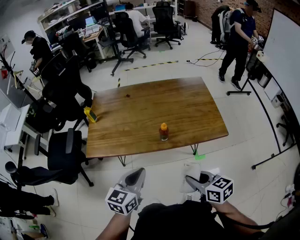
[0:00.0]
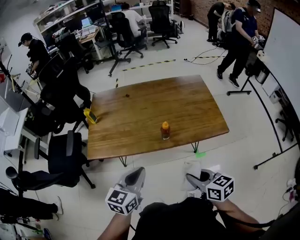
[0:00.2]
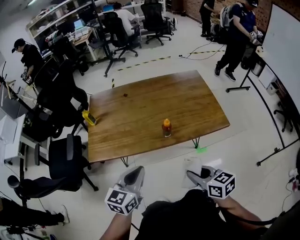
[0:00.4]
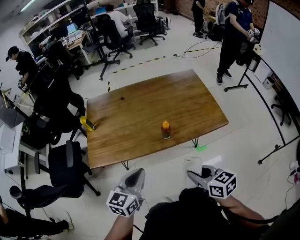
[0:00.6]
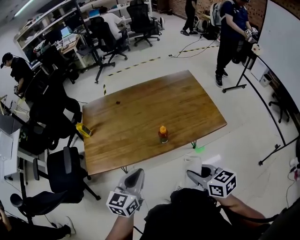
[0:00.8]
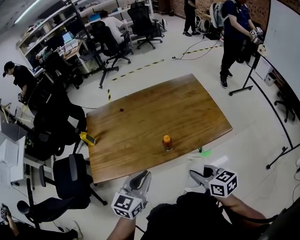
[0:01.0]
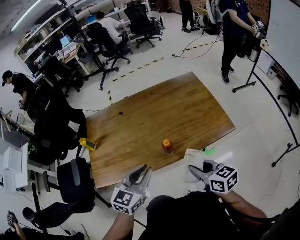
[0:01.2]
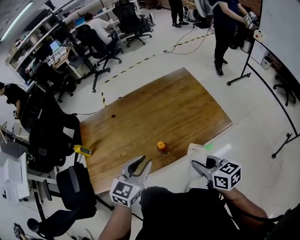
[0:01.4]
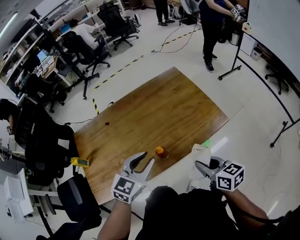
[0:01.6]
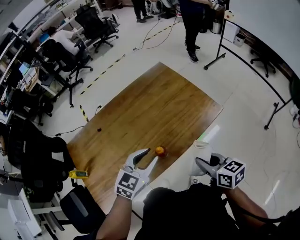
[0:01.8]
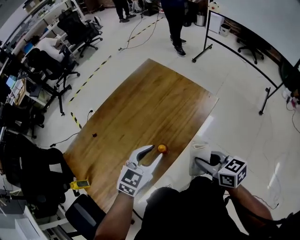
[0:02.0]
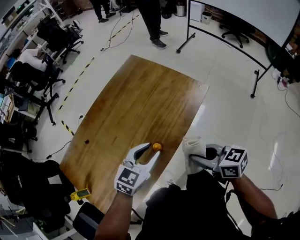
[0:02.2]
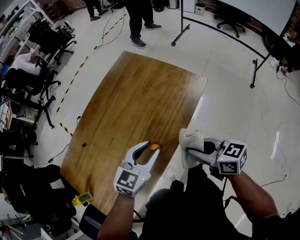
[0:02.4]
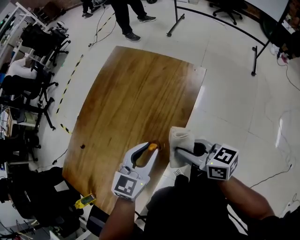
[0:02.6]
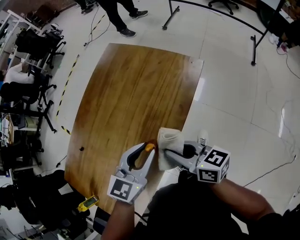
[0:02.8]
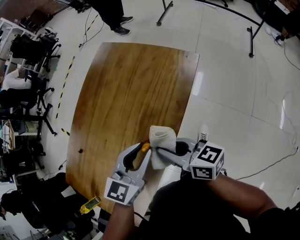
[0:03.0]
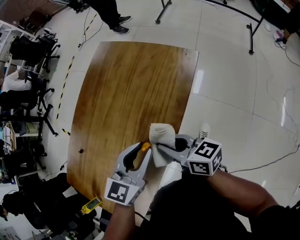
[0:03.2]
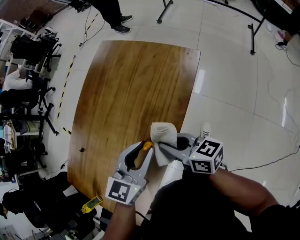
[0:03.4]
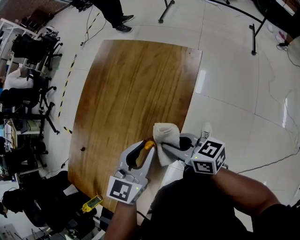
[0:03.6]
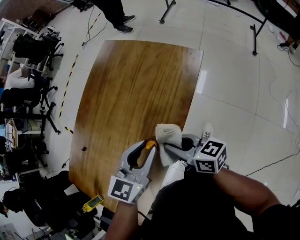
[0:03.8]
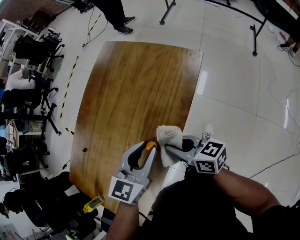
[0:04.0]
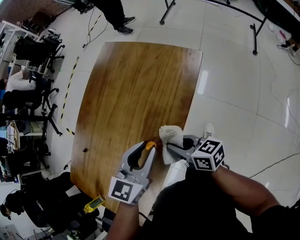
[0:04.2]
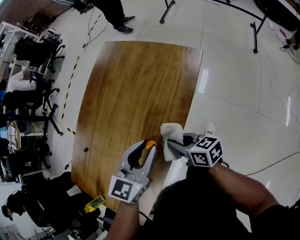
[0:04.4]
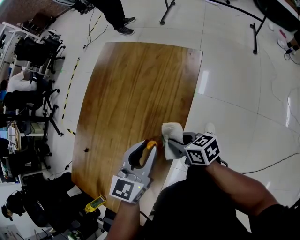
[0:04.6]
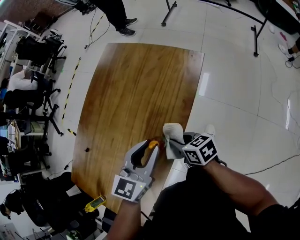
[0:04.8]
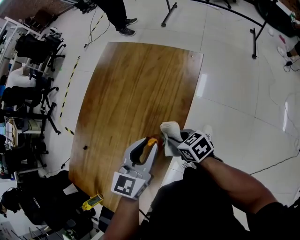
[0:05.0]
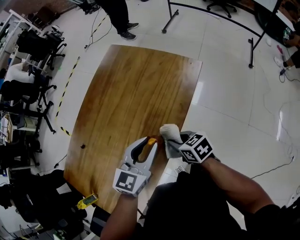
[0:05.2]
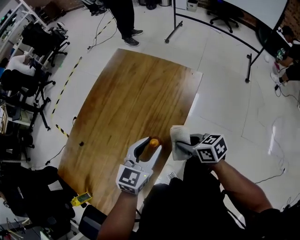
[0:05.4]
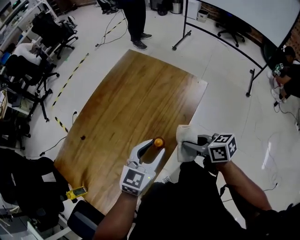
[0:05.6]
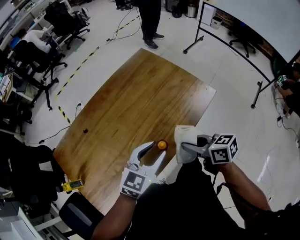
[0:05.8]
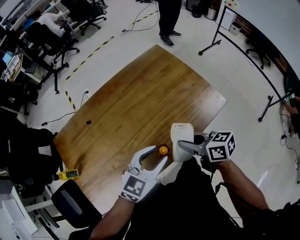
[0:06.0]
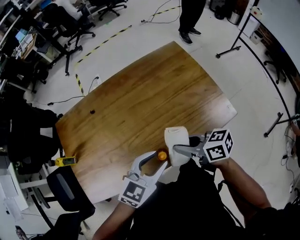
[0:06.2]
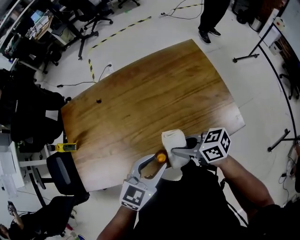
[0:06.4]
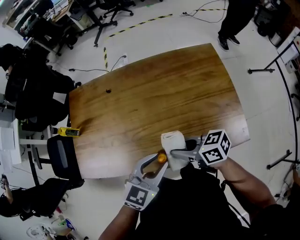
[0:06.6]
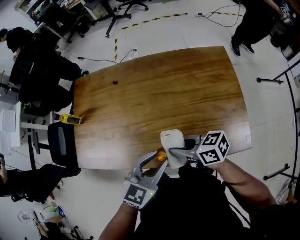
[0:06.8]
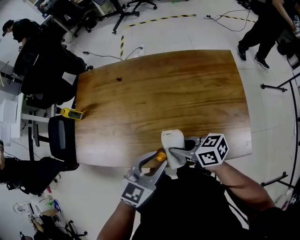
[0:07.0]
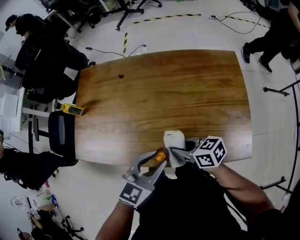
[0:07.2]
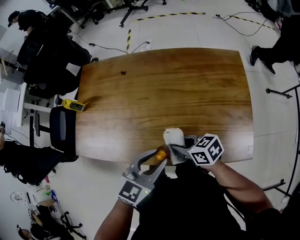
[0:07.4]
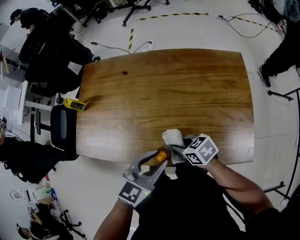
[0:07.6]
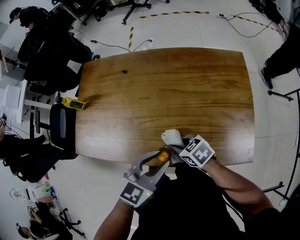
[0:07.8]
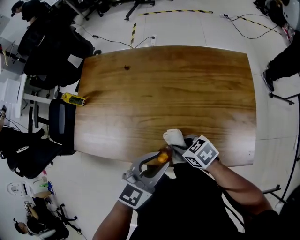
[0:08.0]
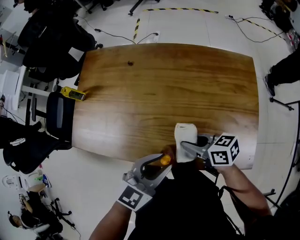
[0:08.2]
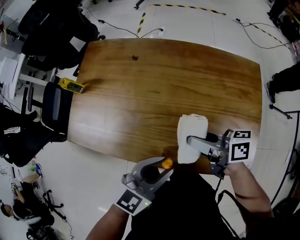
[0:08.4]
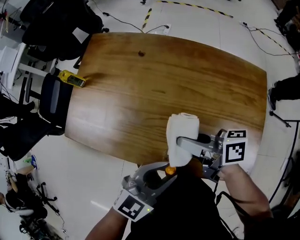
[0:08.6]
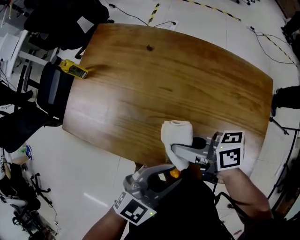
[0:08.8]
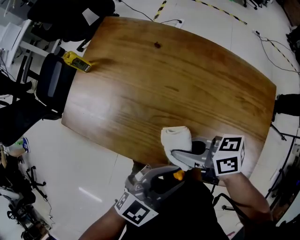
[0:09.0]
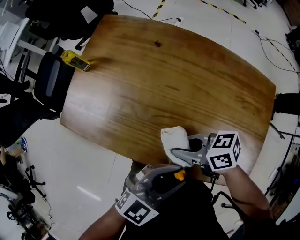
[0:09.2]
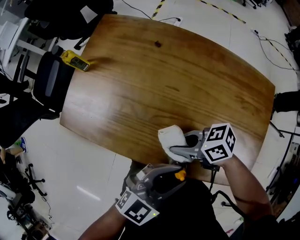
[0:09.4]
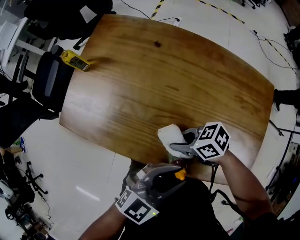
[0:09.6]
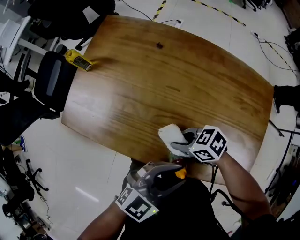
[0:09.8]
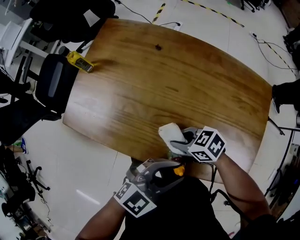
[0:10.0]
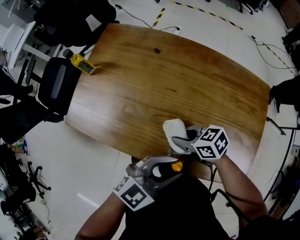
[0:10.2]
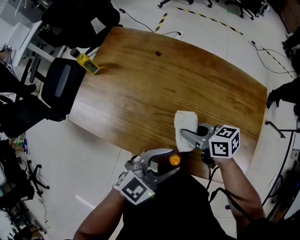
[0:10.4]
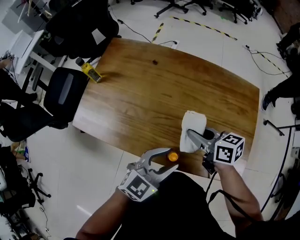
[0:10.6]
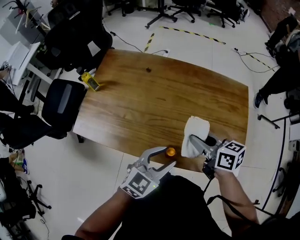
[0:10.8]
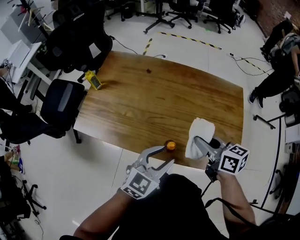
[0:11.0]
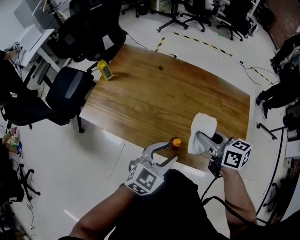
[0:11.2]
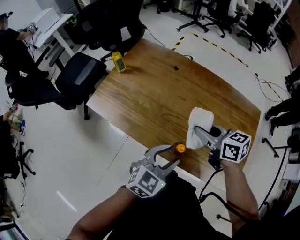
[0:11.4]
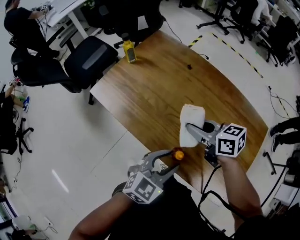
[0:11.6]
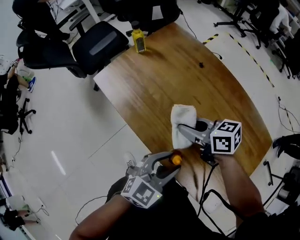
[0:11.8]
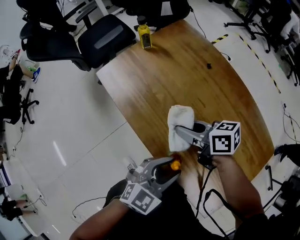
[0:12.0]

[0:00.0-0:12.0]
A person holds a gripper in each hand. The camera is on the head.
0.0 to 1.6 s: The grippers both shift forward by roughly 15 cm. The right gripper turns by about 20 degrees. Meanwhile the left gripper changes its angle by some 40 degrees, and opens.
1.6 to 3.0 s: The left gripper shifts roughly 5 cm downward, and swivels about 30 degrees; the right gripper shifts by about 15 cm, and rotates some 30 degrees.
3.0 to 4.4 s: The right gripper moves downward, roughly 10 cm.
4.4 to 6.0 s: The right gripper goes some 10 cm upward, and swivels roughly 30 degrees.
6.0 to 7.6 s: The left gripper rotates some 40 degrees, while the right gripper travels downward by about 15 cm, and changes its angle by about 60 degrees.
7.6 to 9.0 s: The right gripper moves upward, about 10 cm, and turns by approximately 30 degrees.
9.0 to 10.4 s: The right gripper travels downward and back again, approximately 10 cm each way.
10.4 to 12.0 s: The left gripper rotates approximately 40 degrees. The right gripper shifts by approximately 10 cm, and swivels approximately 30 degrees.

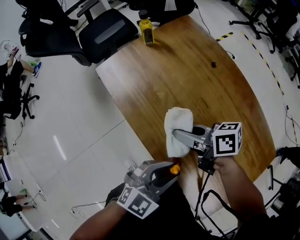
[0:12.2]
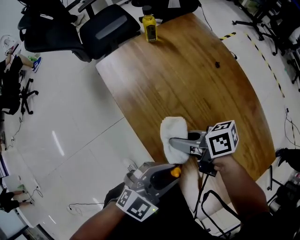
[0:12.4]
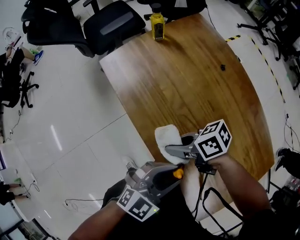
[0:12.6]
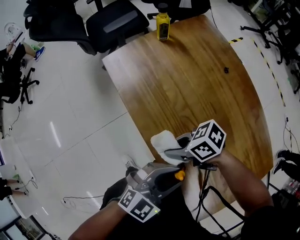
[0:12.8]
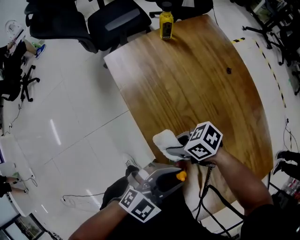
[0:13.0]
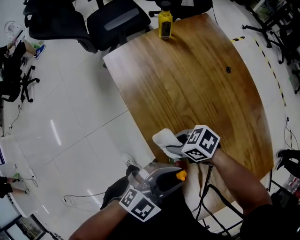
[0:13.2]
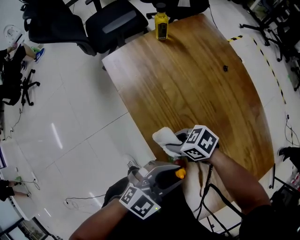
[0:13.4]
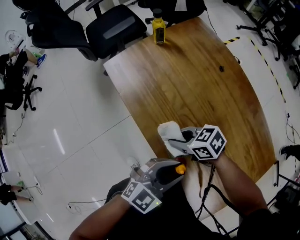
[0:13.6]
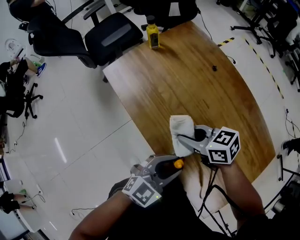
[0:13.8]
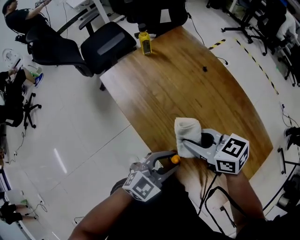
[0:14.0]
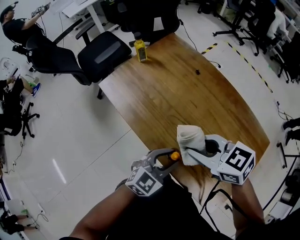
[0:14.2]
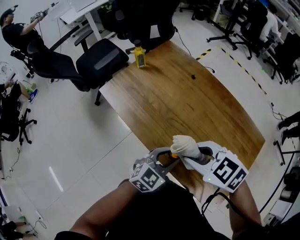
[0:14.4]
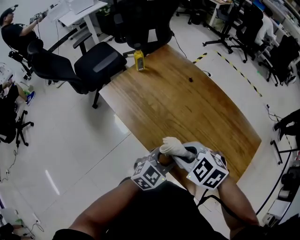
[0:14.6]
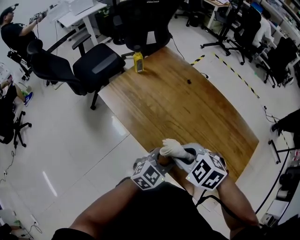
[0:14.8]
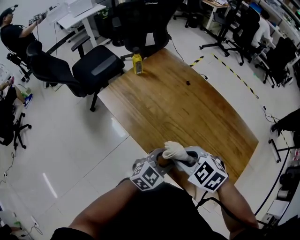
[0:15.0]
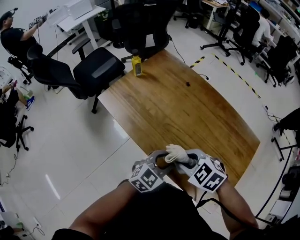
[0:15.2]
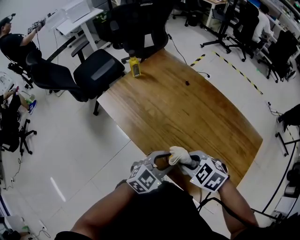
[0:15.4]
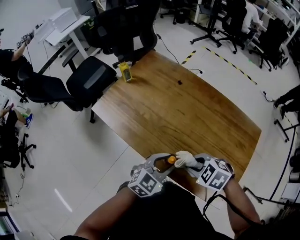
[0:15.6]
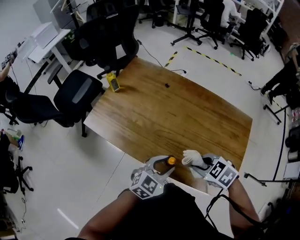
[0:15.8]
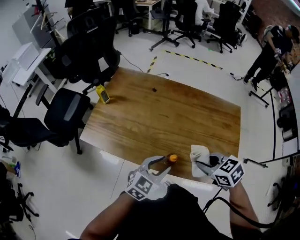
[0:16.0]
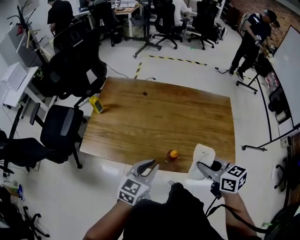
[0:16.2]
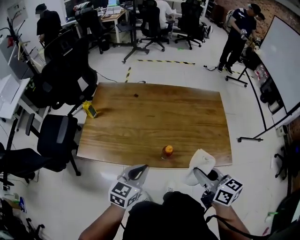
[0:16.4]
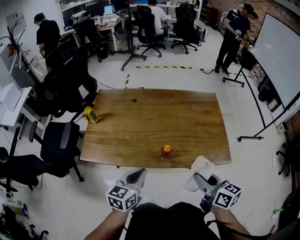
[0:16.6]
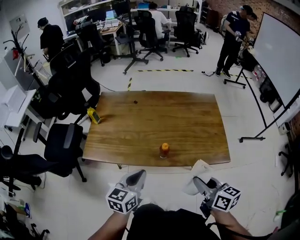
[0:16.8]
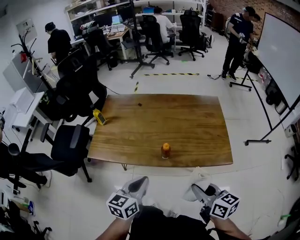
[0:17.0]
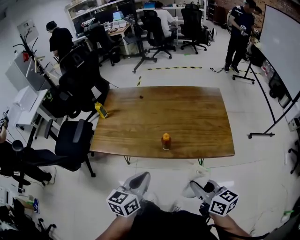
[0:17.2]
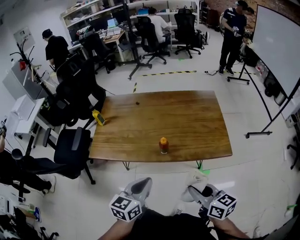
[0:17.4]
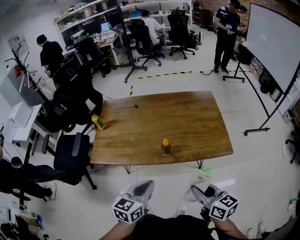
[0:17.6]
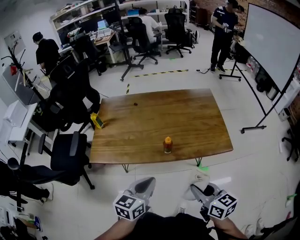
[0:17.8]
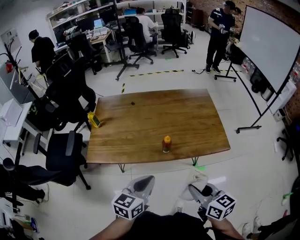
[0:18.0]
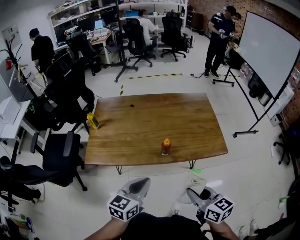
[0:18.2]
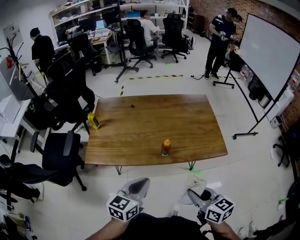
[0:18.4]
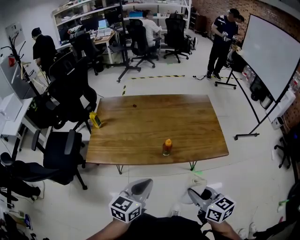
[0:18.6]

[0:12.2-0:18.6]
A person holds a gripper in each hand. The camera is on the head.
12.2 to 13.8 s: The right gripper moves approximately 10 cm downward and comes back, and changes its angle by about 30 degrees.
13.8 to 15.4 s: The right gripper goes upward and returns, roughly 10 cm each way, and swivels approximately 40 degrees.
15.4 to 17.0 s: The left gripper moves some 20 cm, swivels about 20 degrees, and closes its fingers, while the right gripper shifts by approximately 25 cm, and tilts its fingers approximately 40 degrees upward.
17.0 to 18.6 s: The right gripper is displaced to the left and backward by some 10 cm.

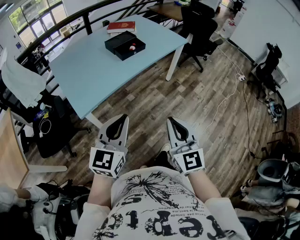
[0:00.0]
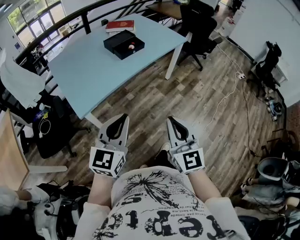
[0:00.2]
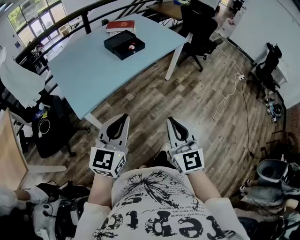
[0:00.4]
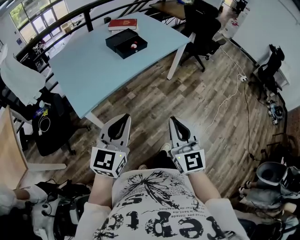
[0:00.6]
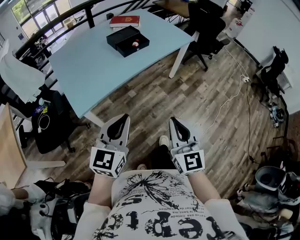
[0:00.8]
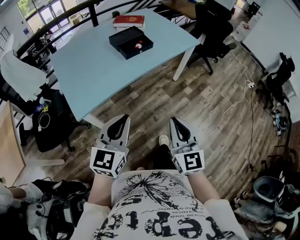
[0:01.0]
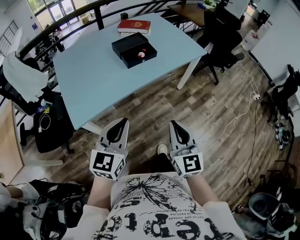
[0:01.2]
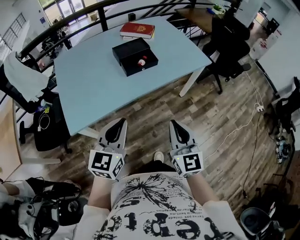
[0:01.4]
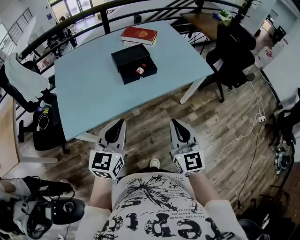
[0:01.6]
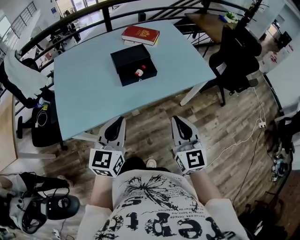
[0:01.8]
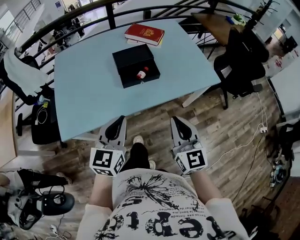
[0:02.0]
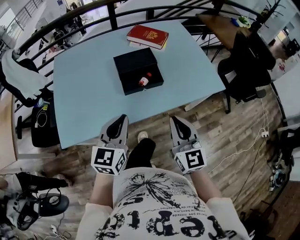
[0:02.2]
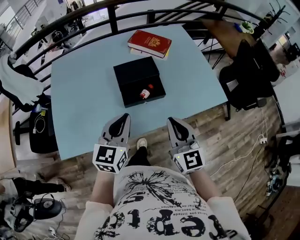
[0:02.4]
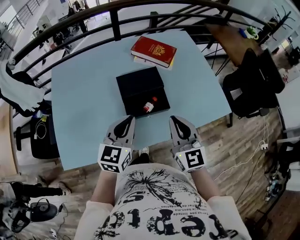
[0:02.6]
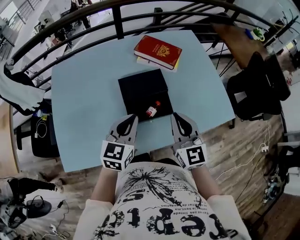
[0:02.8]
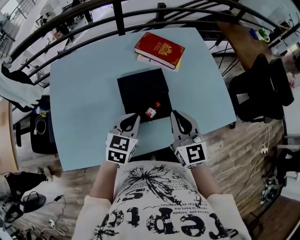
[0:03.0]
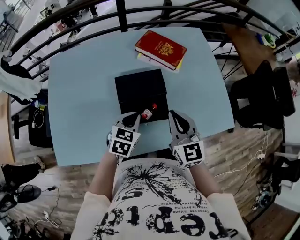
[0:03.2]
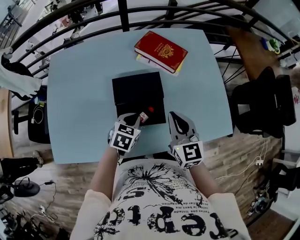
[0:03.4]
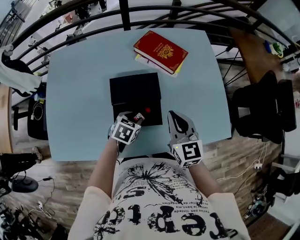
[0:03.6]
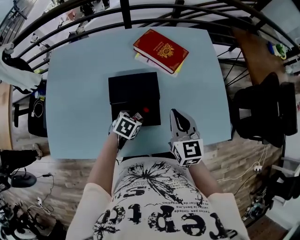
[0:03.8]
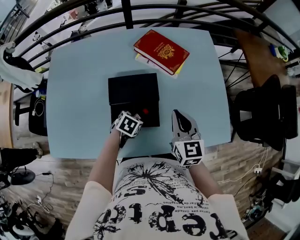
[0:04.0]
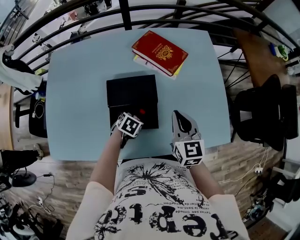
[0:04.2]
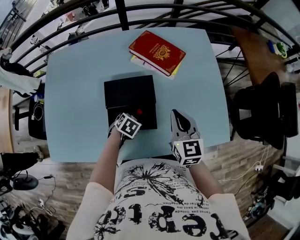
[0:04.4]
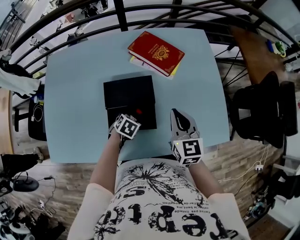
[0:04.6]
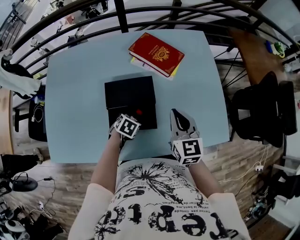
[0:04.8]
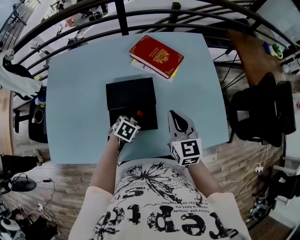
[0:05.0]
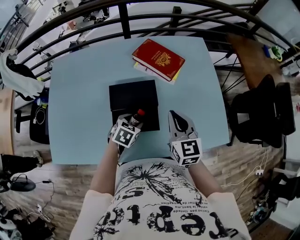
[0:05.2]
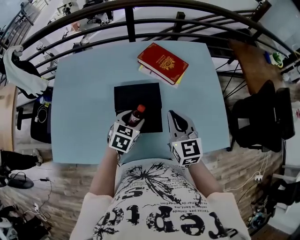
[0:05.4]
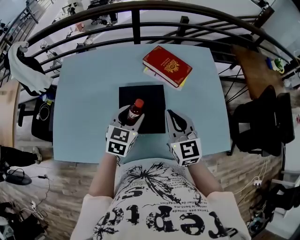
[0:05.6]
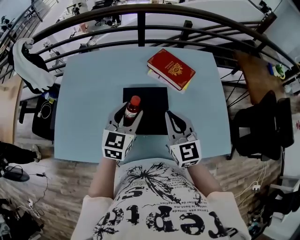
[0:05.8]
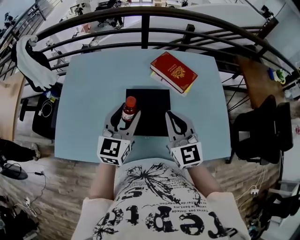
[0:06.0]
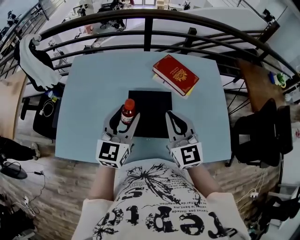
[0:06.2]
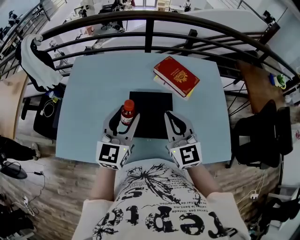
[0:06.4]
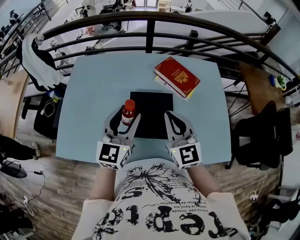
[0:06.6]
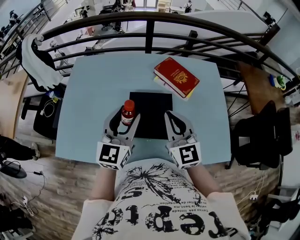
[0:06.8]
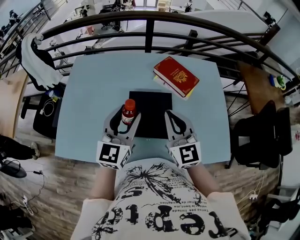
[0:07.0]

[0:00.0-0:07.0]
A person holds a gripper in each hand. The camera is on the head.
0.0 to 1.4 s: The two grippers go about 25 cm forward.
1.4 to 2.8 s: The pair of grippers is taken forward, some 40 cm.
2.8 to 4.2 s: The left gripper heads downward, covering some 25 cm, tilts its fingers roughly 50 degrees downward, and opens up; the right gripper moves forward, to the right and downward, roughly 15 cm.
4.2 to 5.6 s: The right gripper heads to the left and upward, covering about 10 cm; the left gripper is displaced upward by some 20 cm, and tilts its fingers about 40 degrees upward.
5.6 to 7.0 s: The left gripper goes about 15 cm upward and to the left, and changes its angle by some 30 degrees, while the right gripper travels to the left by roughly 5 cm.
